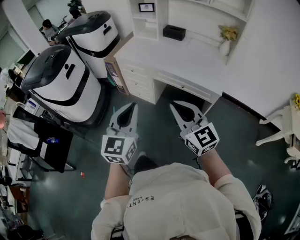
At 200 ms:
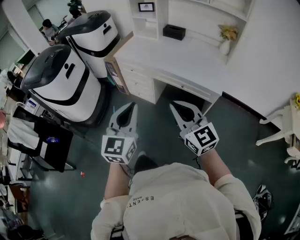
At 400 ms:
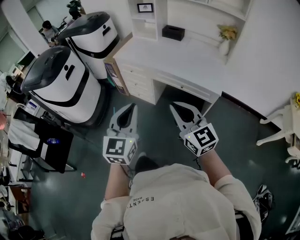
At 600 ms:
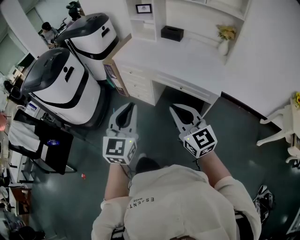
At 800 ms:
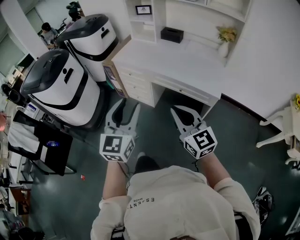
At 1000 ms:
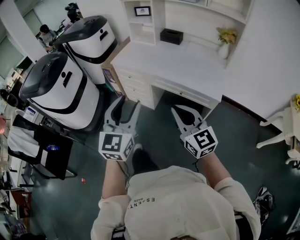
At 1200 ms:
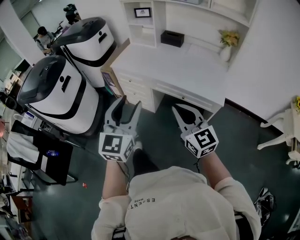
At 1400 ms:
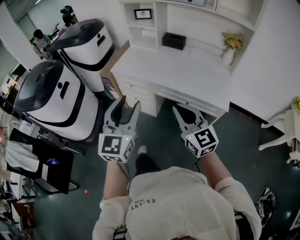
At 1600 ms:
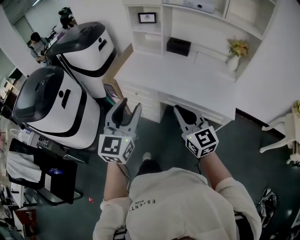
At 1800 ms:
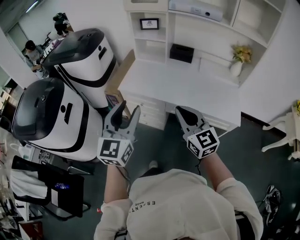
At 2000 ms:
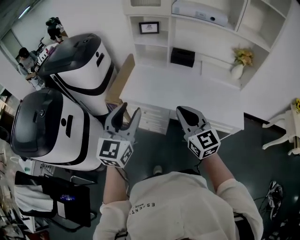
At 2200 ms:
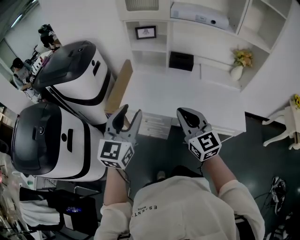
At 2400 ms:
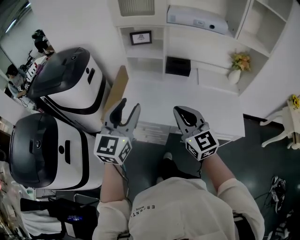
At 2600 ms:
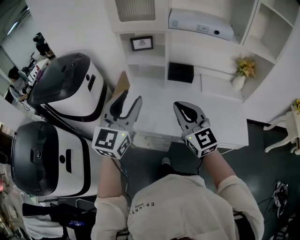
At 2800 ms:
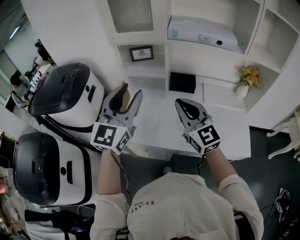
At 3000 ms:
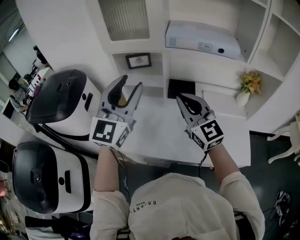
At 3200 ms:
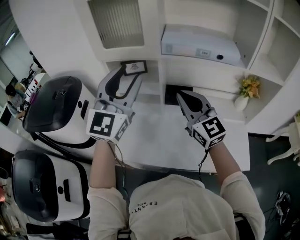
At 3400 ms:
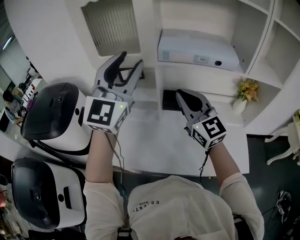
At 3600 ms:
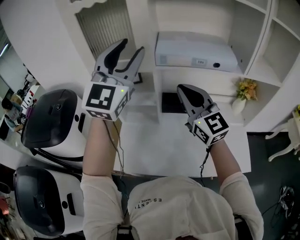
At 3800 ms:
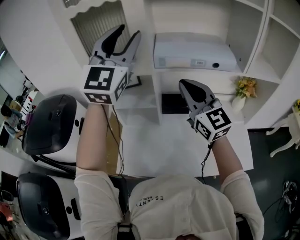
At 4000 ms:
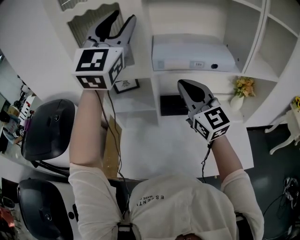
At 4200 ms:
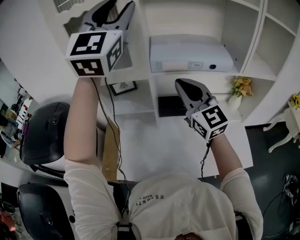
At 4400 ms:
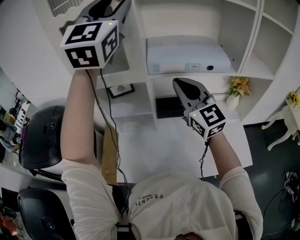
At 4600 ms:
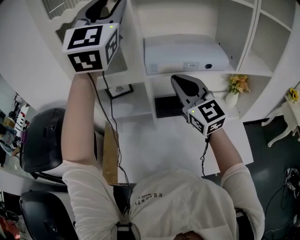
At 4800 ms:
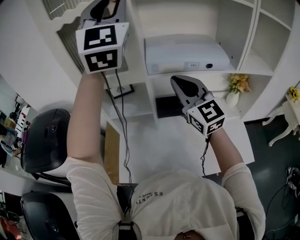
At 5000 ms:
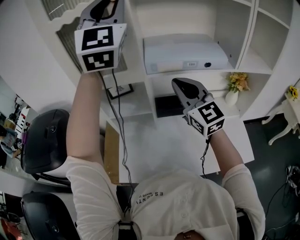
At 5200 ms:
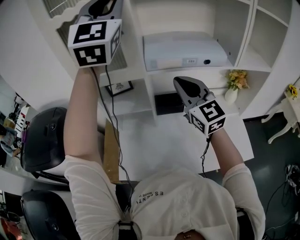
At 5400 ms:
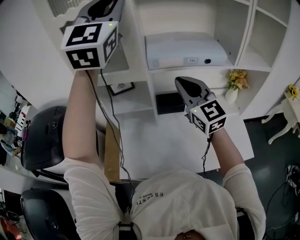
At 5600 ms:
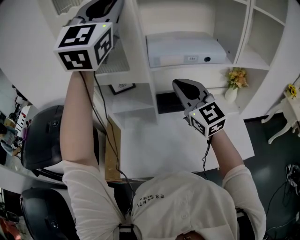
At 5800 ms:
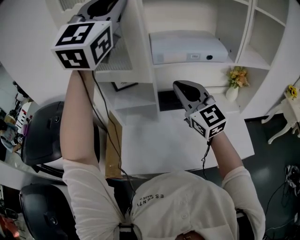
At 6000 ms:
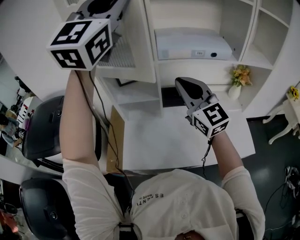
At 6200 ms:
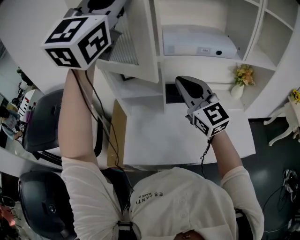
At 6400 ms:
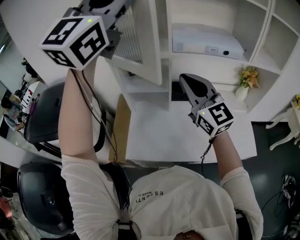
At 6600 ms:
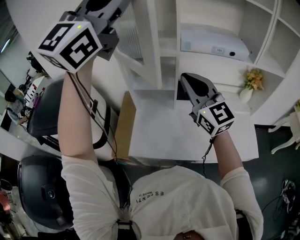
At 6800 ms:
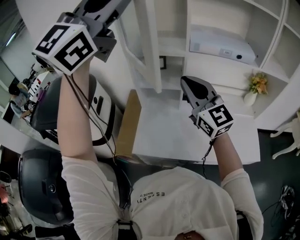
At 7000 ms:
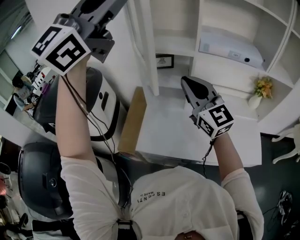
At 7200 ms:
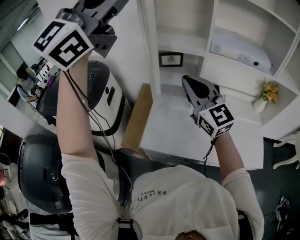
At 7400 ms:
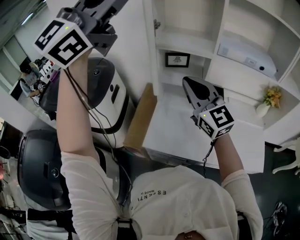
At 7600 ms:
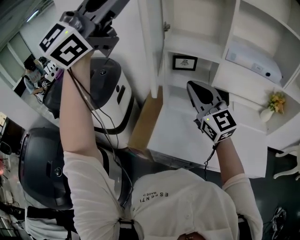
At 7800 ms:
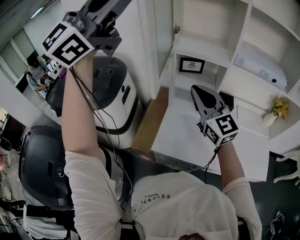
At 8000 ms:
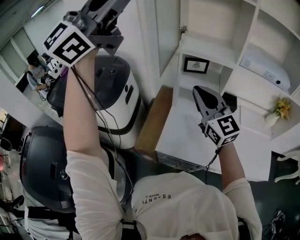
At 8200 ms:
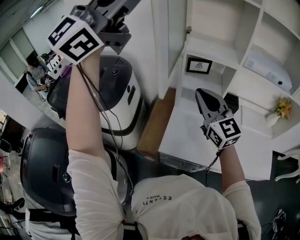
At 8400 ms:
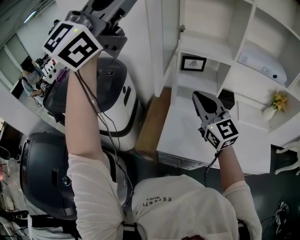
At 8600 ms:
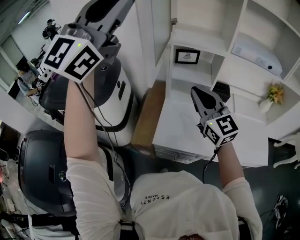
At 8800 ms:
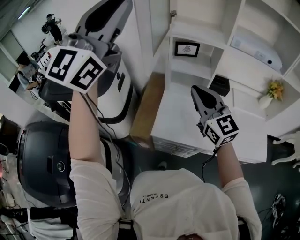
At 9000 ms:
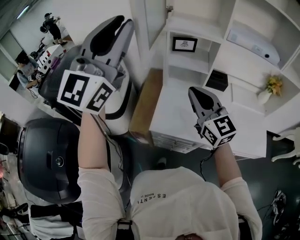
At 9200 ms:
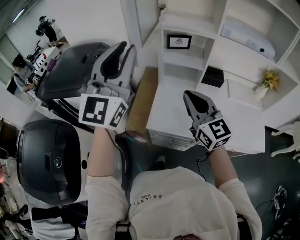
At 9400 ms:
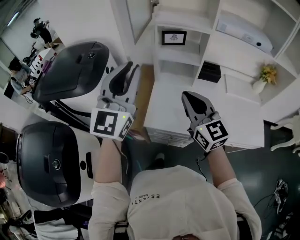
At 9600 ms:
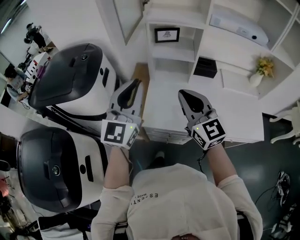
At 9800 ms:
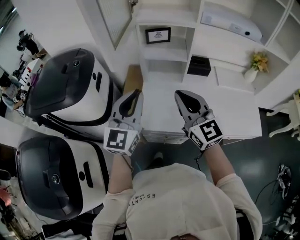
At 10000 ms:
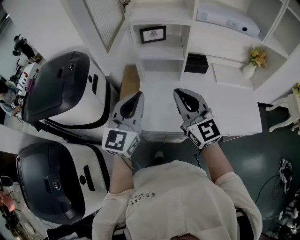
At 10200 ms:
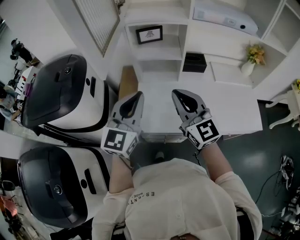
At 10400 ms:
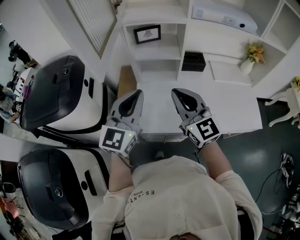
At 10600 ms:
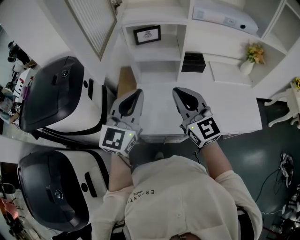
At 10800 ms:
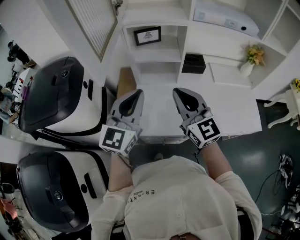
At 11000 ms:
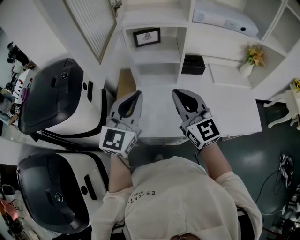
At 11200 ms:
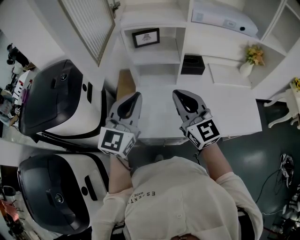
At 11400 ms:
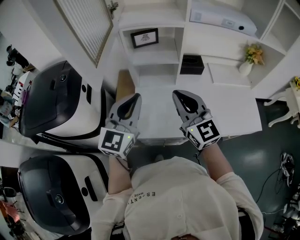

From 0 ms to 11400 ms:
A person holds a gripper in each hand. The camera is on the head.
From 0 ms to 1400 ms: Both grippers travel together forward, roughly 15 cm. The left gripper opens.
From 1400 ms to 2800 ms: The pair of grippers is taken forward, some 50 cm. The left gripper changes its angle by approximately 20 degrees.
From 2800 ms to 4200 ms: The right gripper travels forward and upward by about 20 cm. Meanwhile the left gripper moves upward and forward, roughly 40 cm, and rotates some 30 degrees.
From 4200 ms to 5600 ms: The left gripper closes.
From 5600 ms to 7200 ms: The right gripper heads to the left and backward, covering about 20 cm; the left gripper travels backward and to the left by roughly 25 cm.
From 7200 ms to 8600 ms: The right gripper travels to the left by some 5 cm. Meanwhile the left gripper travels to the left by about 15 cm.
From 8600 ms to 10000 ms: The right gripper moves downward, backward and to the right, some 10 cm, while the left gripper is displaced downward by roughly 35 cm, and swivels some 30 degrees.
From 10000 ms to 11400 ms: The grippers stay close to where they were, moving slightly.

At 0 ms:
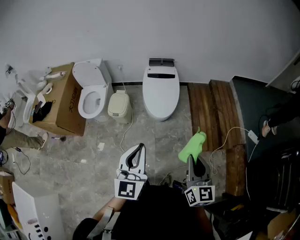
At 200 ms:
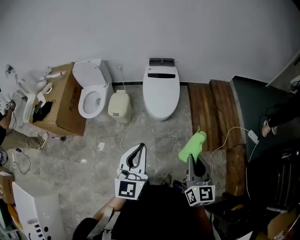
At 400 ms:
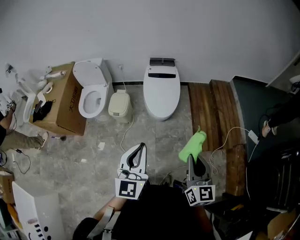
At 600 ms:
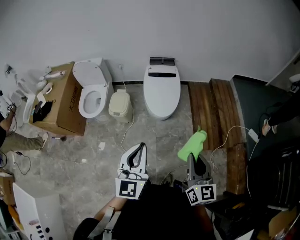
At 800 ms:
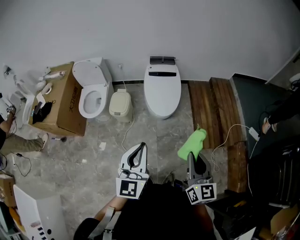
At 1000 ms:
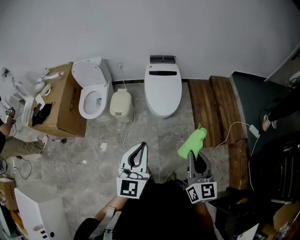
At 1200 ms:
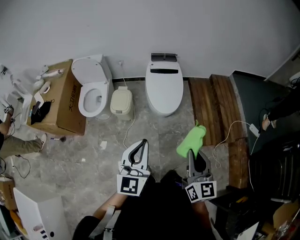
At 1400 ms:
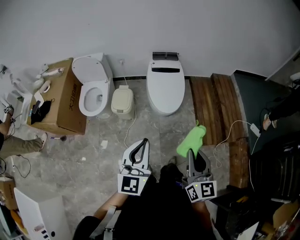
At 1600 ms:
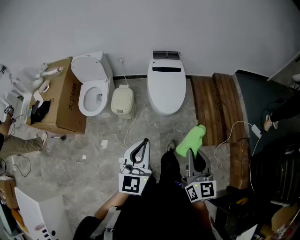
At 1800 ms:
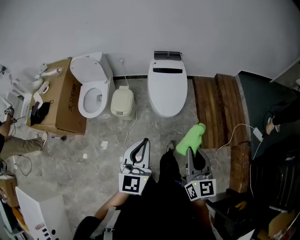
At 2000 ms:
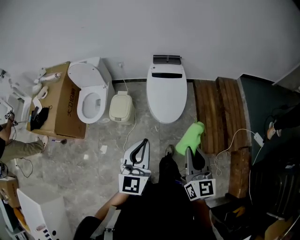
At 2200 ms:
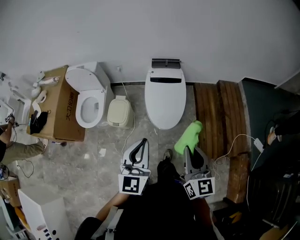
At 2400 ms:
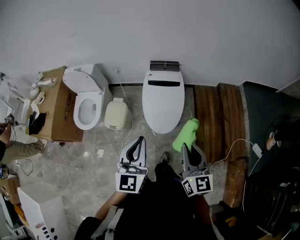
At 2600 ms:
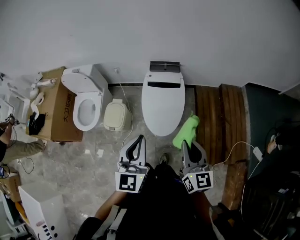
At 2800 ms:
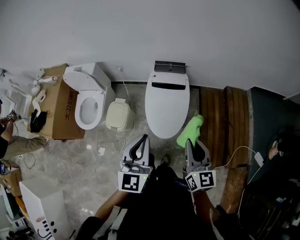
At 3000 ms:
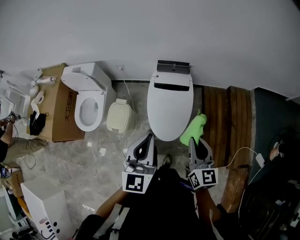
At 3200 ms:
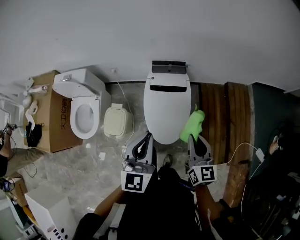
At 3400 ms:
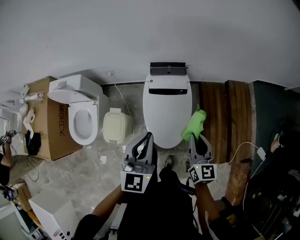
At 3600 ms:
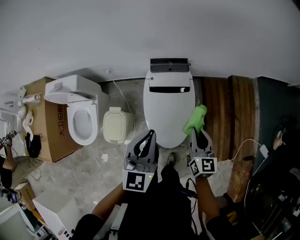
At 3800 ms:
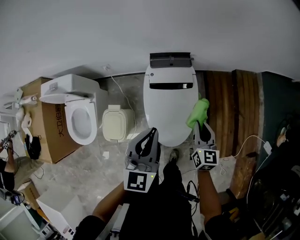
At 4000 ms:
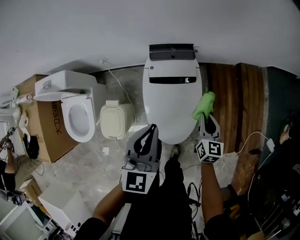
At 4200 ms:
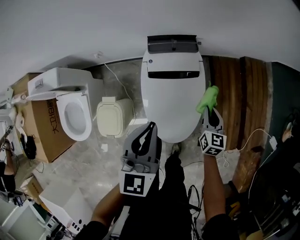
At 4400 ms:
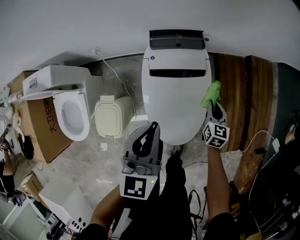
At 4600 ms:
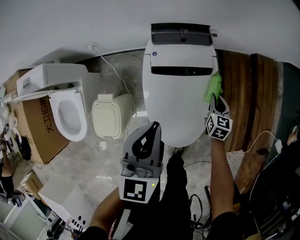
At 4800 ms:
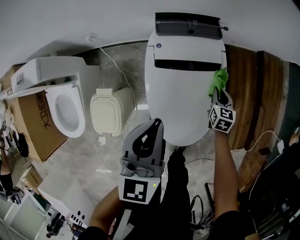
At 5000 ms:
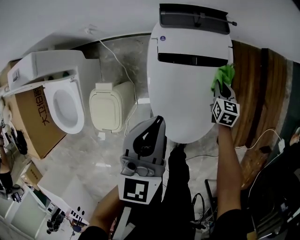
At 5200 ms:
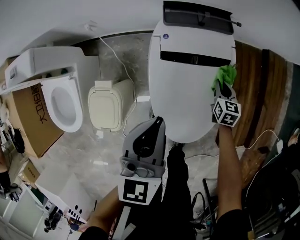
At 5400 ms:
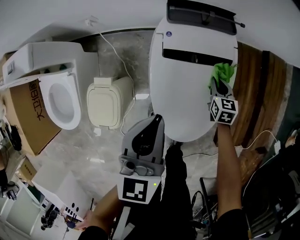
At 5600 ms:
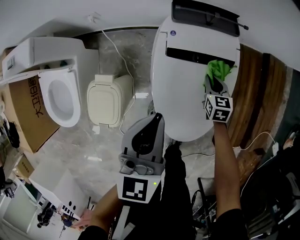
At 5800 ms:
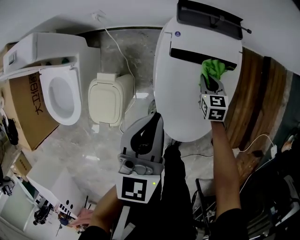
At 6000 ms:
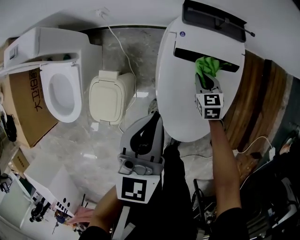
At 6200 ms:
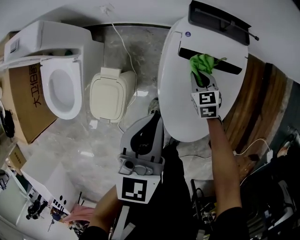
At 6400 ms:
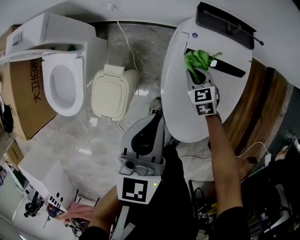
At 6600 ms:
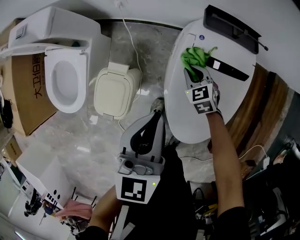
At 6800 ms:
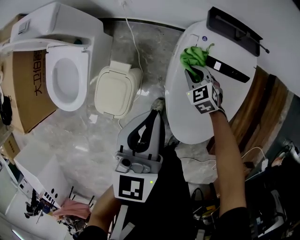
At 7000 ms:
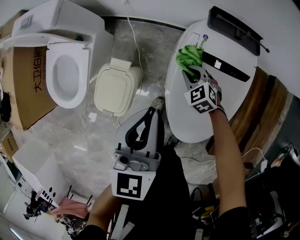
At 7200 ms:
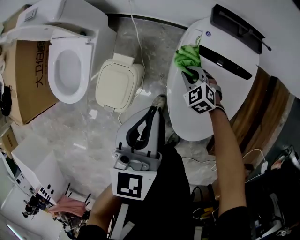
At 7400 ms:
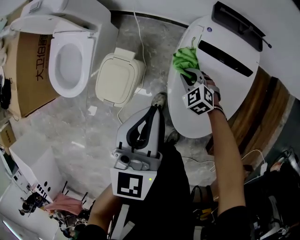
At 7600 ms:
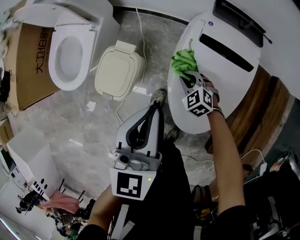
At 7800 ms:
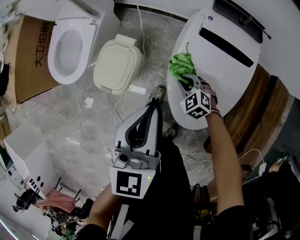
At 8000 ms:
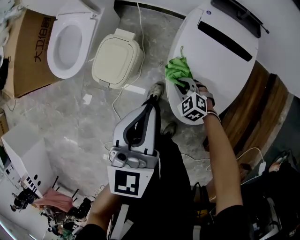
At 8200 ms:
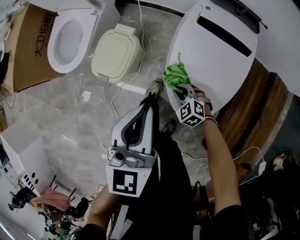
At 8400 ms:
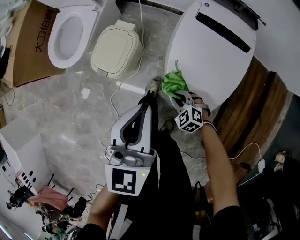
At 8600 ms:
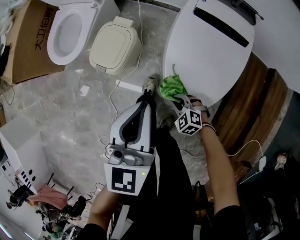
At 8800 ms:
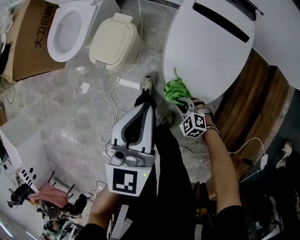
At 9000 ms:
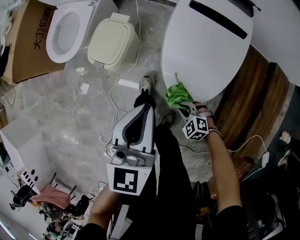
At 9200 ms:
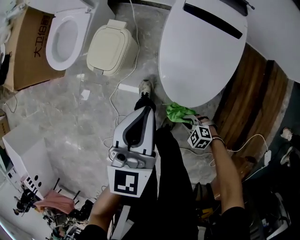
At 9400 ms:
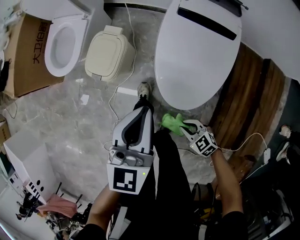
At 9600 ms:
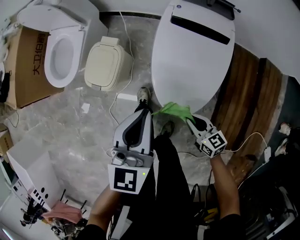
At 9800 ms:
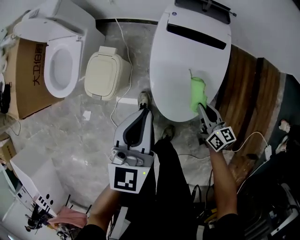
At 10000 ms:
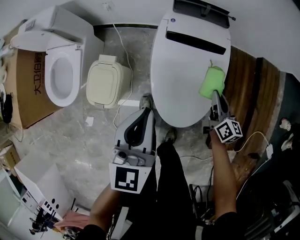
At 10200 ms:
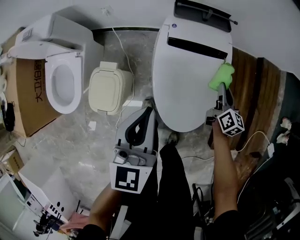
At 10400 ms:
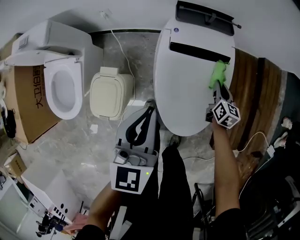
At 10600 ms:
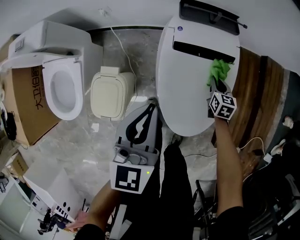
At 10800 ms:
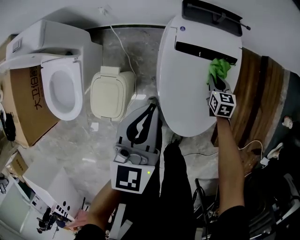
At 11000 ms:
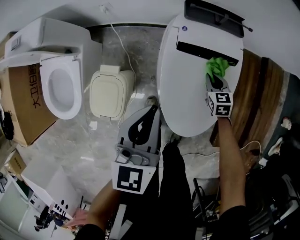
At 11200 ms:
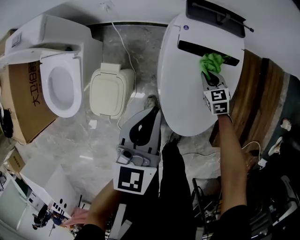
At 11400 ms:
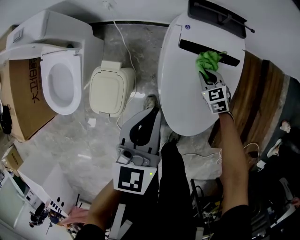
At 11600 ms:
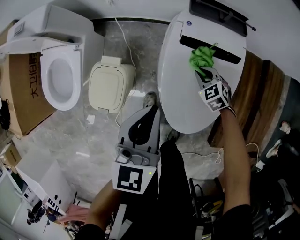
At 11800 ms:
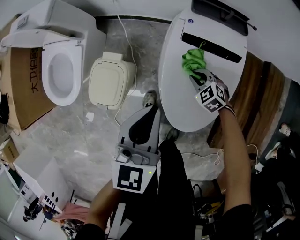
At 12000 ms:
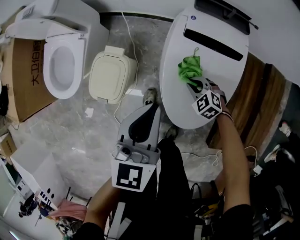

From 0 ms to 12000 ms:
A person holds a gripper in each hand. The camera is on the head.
From 0 ms to 1600 ms: The grippers both shift to the left by approximately 10 cm.
From 1600 ms to 3000 ms: Both grippers are carried forward, about 40 cm.
From 3000 ms to 4400 ms: The left gripper heads forward and downward, covering approximately 35 cm; the right gripper is displaced downward and forward by approximately 50 cm, and changes its angle by some 30 degrees.
From 4400 ms to 6000 ms: The left gripper travels downward and to the left by some 15 cm; the right gripper heads to the left and downward, covering about 25 cm, and changes its angle by roughly 30 degrees.
From 6000 ms to 7600 ms: The right gripper travels to the left and backward by roughly 20 cm, and rolls counterclockwise, seen from behind, by some 40 degrees. Meanwhile the left gripper heads backward and to the left, covering about 10 cm.
From 7600 ms to 9000 ms: The left gripper goes approximately 20 cm backward. The right gripper moves backward, about 35 cm, and turns by roughly 20 degrees.
From 9000 ms to 10400 ms: The left gripper ends up approximately 20 cm from where it was; the right gripper changes place by about 40 cm, and rolls clockwise, seen from behind, by some 80 degrees.
From 10400 ms to 12000 ms: The right gripper shifts by approximately 20 cm, and twists about 70 degrees counterclockwise, seen from behind. Meanwhile the left gripper ends up approximately 5 cm from where it was.
